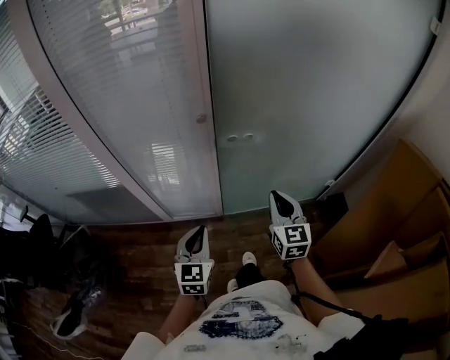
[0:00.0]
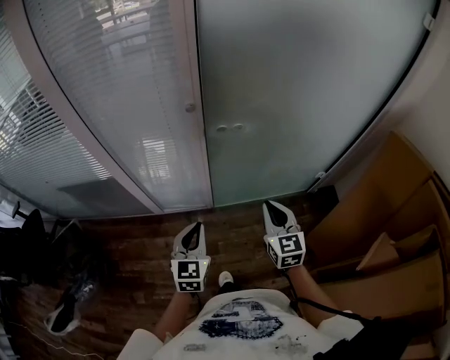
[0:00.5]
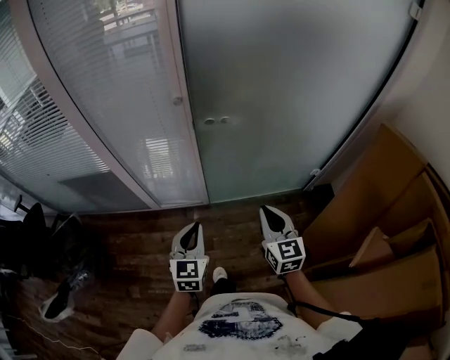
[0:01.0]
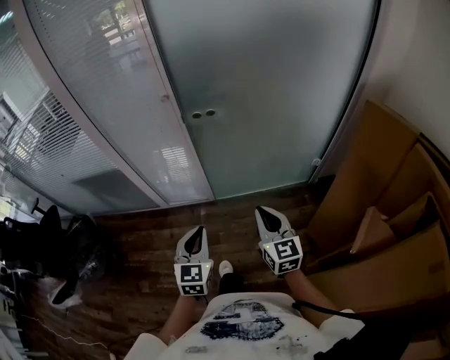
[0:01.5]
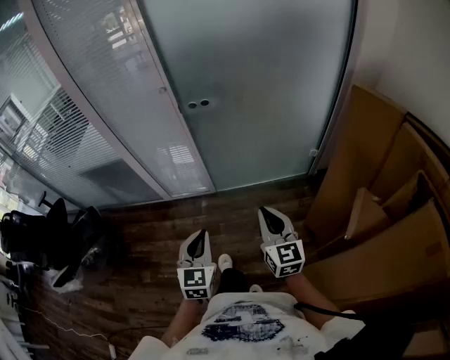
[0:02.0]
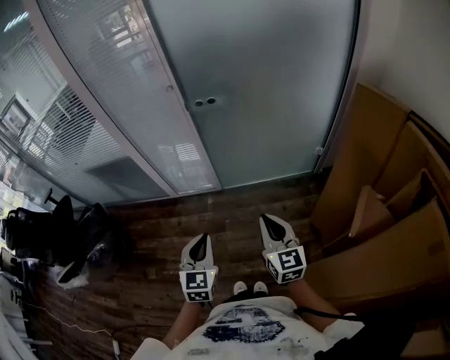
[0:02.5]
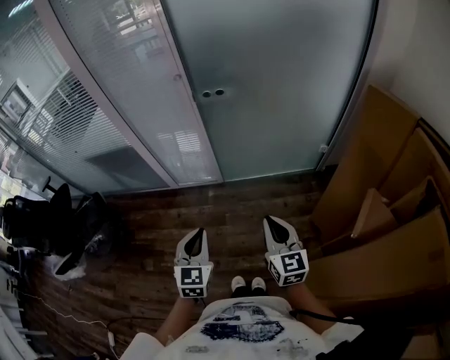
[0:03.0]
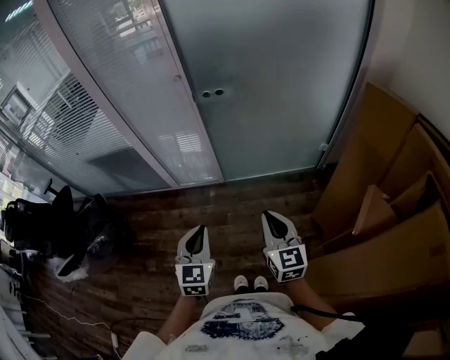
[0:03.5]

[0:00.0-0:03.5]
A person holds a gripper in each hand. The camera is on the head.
0:00.0 to 0:02.0: The right gripper shifts some 30 cm backward. Meanwhile the left gripper is displaced backward and to the right by approximately 30 cm.
0:02.0 to 0:03.5: The grippers stay close to where they were, moving slightly.

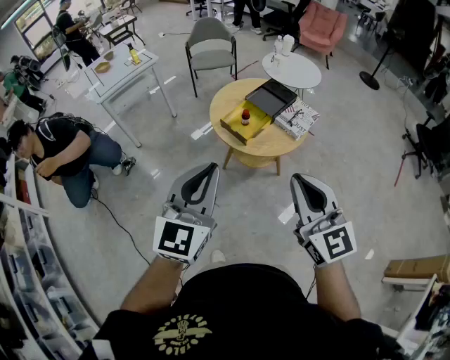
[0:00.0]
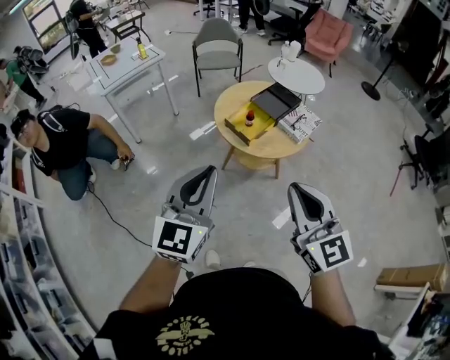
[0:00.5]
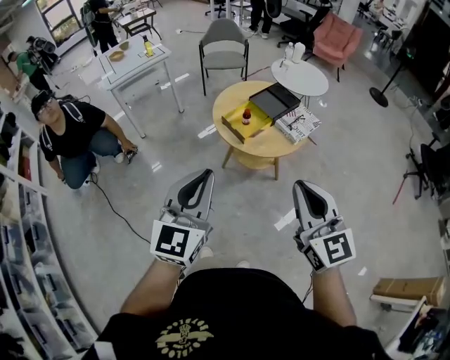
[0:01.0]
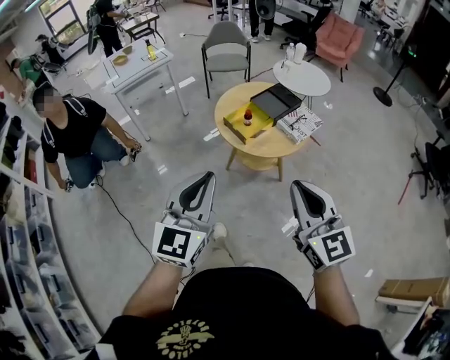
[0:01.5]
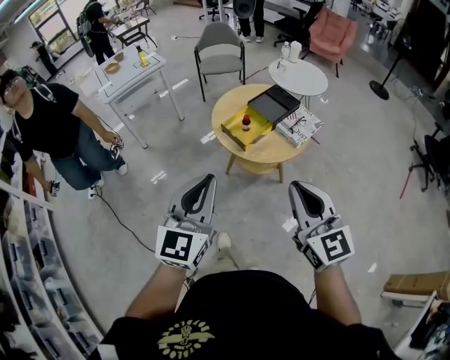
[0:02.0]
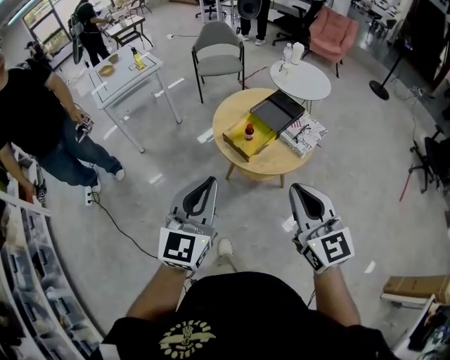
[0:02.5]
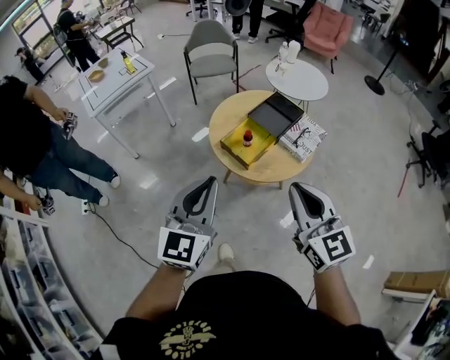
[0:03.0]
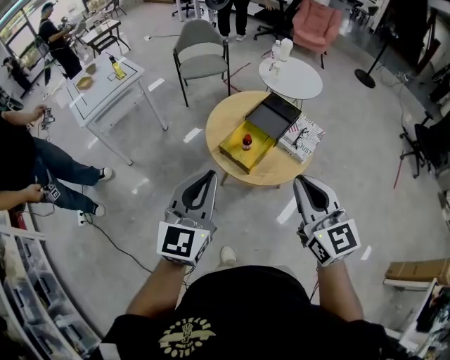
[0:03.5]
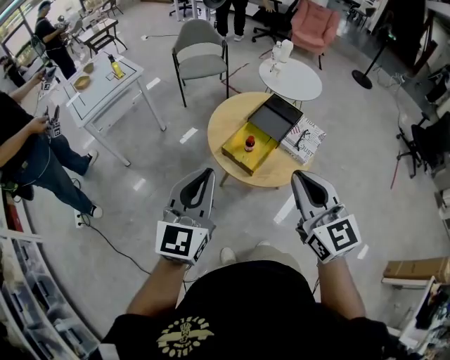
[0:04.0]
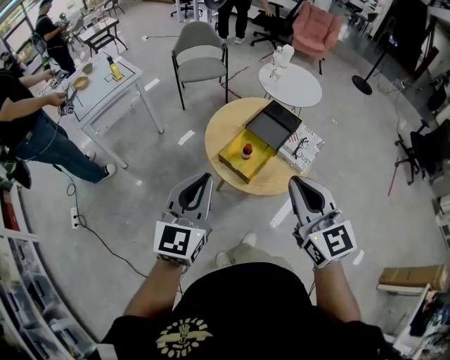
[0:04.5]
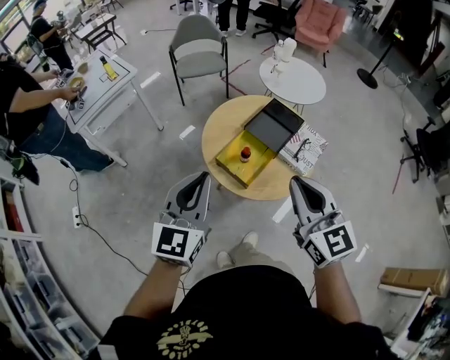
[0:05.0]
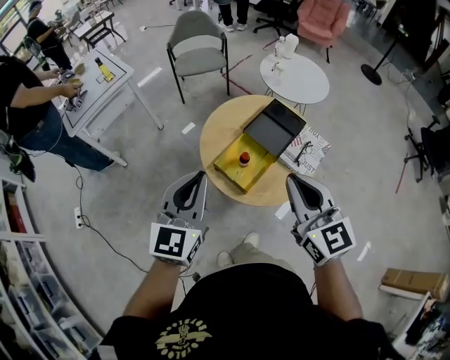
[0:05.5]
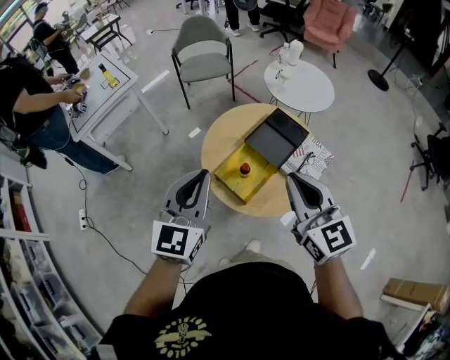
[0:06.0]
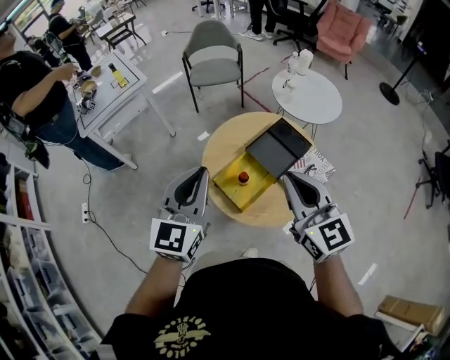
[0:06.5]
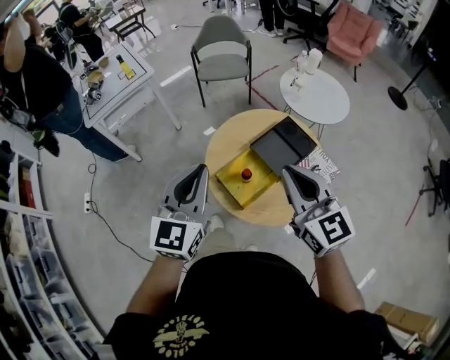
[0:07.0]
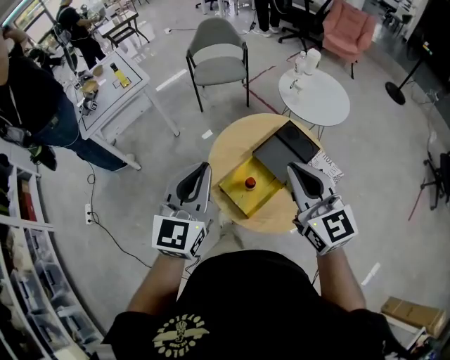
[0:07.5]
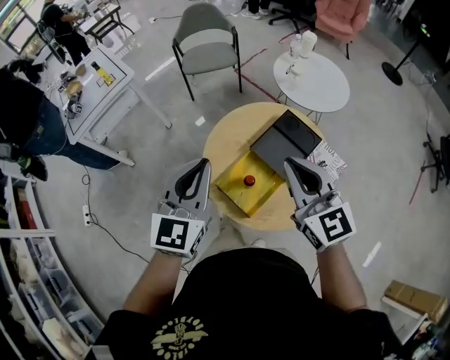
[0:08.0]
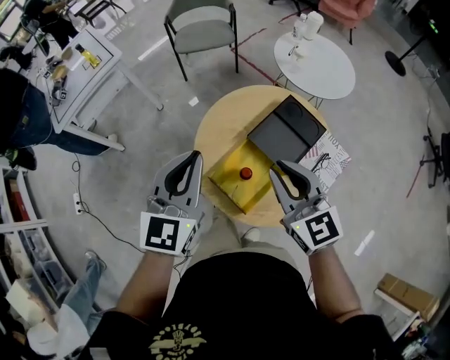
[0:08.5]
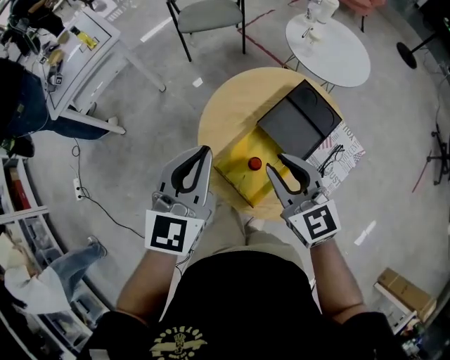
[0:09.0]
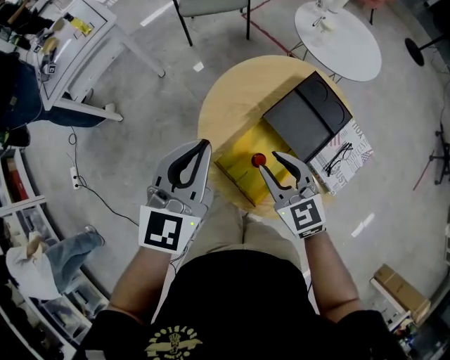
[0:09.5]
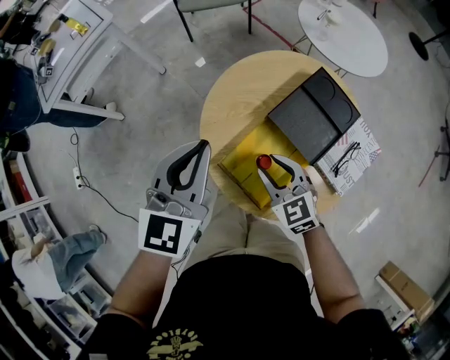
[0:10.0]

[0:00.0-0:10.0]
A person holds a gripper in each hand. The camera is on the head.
0:00.0 to 0:02.0: The right gripper changes place by about 5 cm.
0:02.0 to 0:04.0: The grippers both shift forward and to the left by roughly 25 cm.
0:04.0 to 0:06.0: Both grippers move forward and to the right, about 20 cm.
0:06.0 to 0:08.0: The grippers both shift forward by some 10 cm.
0:08.0 to 0:10.0: The right gripper heads downward, covering about 30 cm, turns by some 30 degrees, and opens; the left gripper travels downward and forward by some 15 cm.

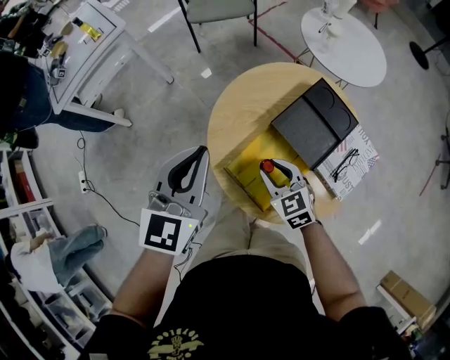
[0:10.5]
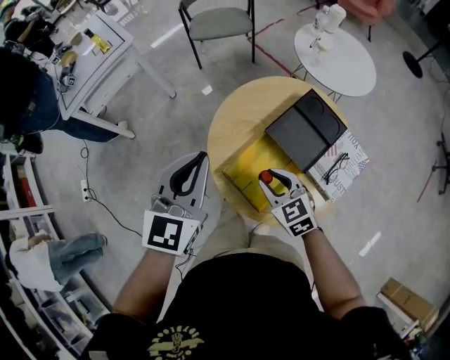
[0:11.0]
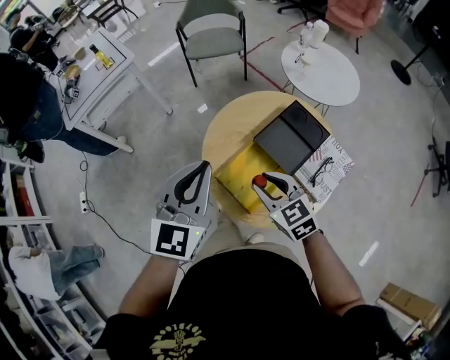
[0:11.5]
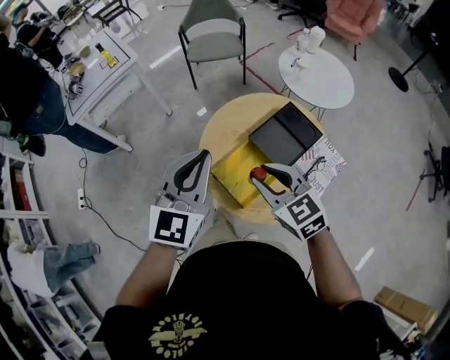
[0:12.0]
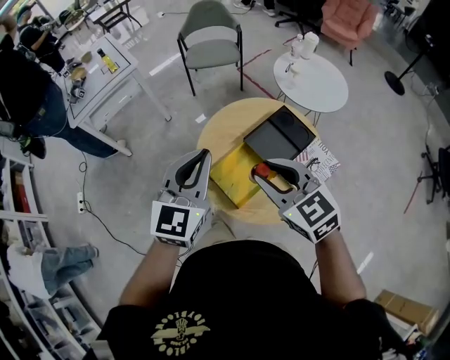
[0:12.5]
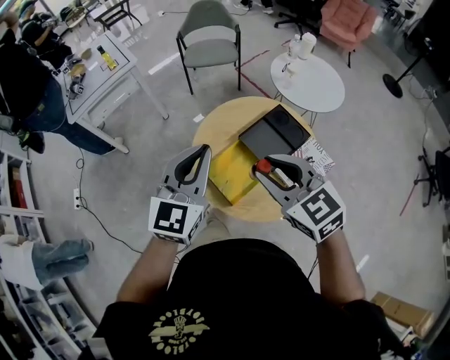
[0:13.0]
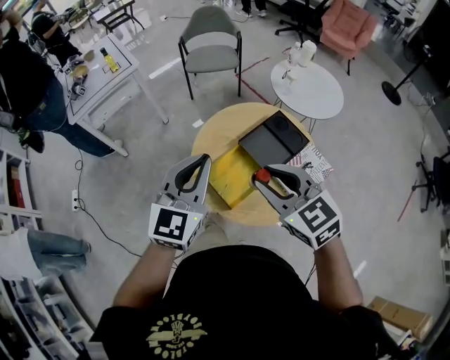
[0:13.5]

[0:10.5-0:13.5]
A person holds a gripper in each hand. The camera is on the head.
0:10.5 to 0:12.0: The right gripper travels upward by about 20 cm; the left gripper goes some 15 cm upward and backward.
0:12.0 to 0:13.5: The right gripper shifts about 10 cm upward.

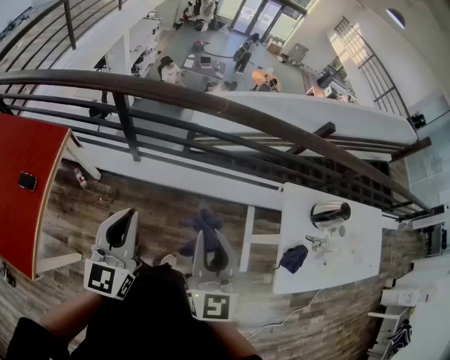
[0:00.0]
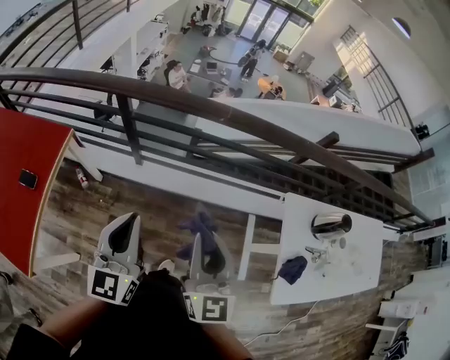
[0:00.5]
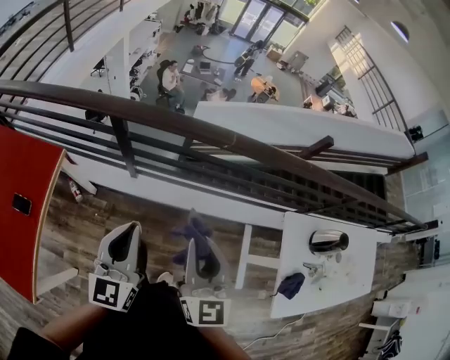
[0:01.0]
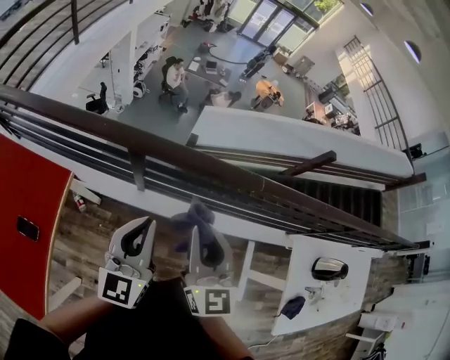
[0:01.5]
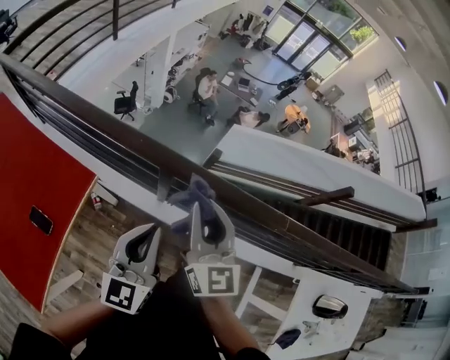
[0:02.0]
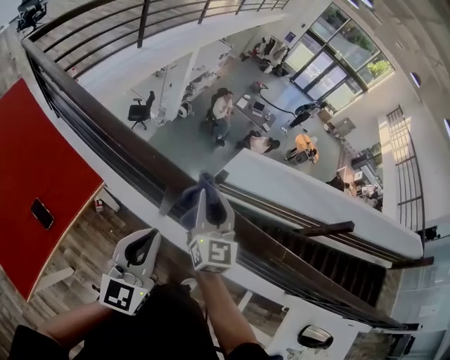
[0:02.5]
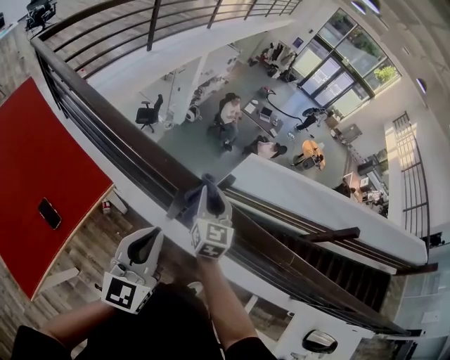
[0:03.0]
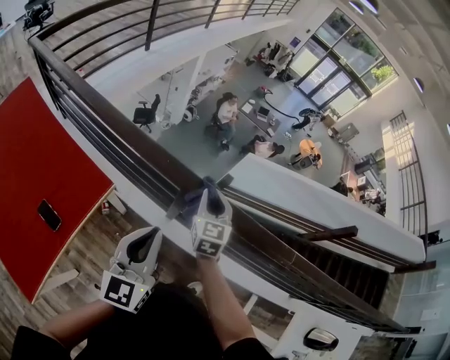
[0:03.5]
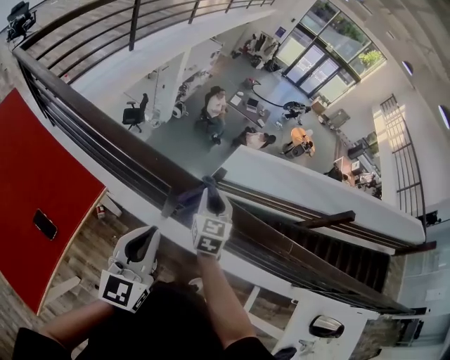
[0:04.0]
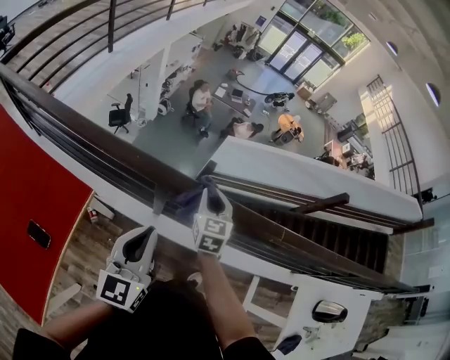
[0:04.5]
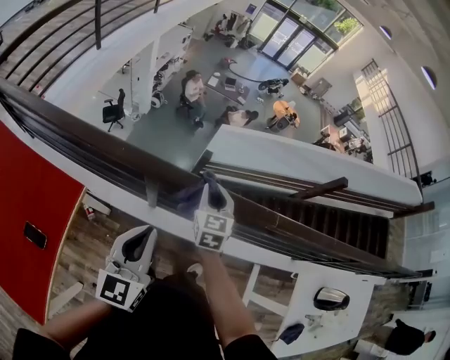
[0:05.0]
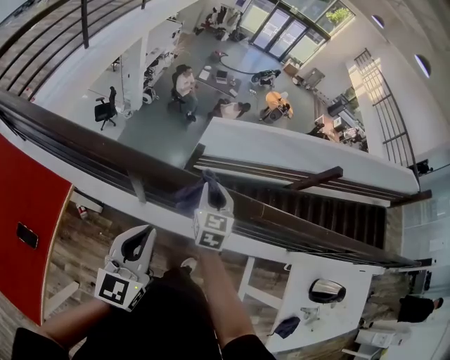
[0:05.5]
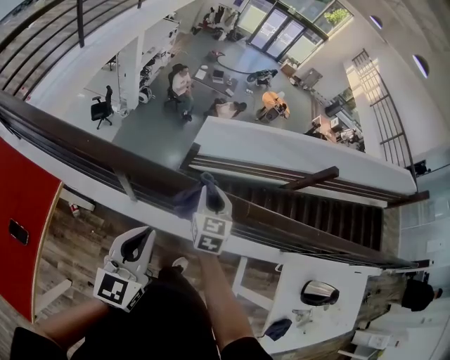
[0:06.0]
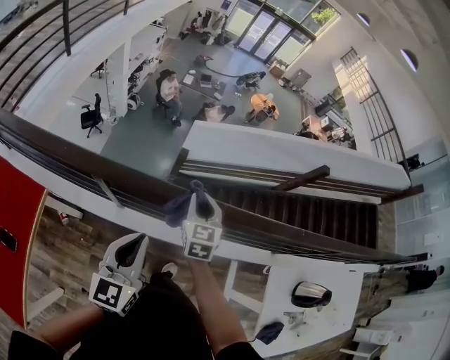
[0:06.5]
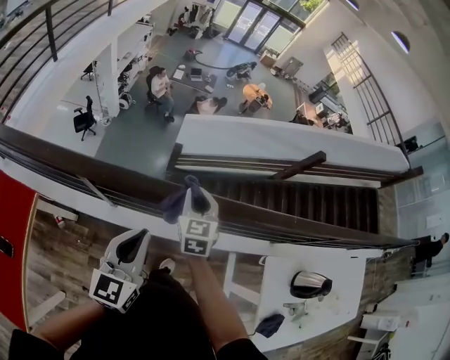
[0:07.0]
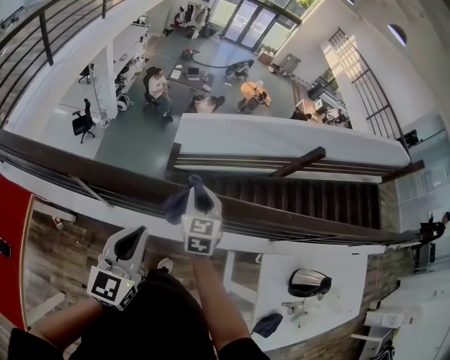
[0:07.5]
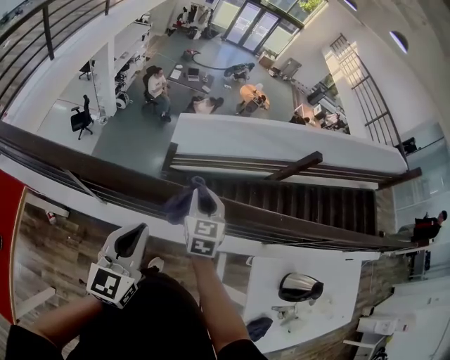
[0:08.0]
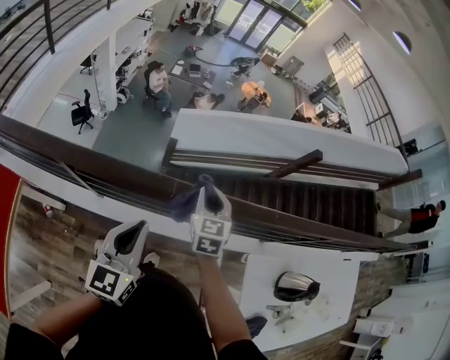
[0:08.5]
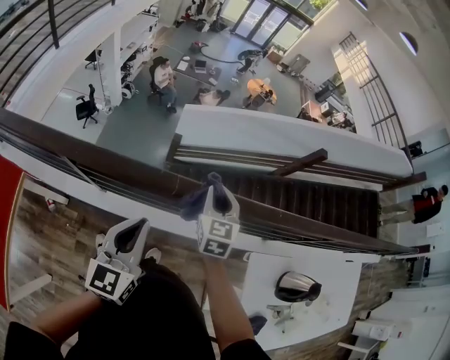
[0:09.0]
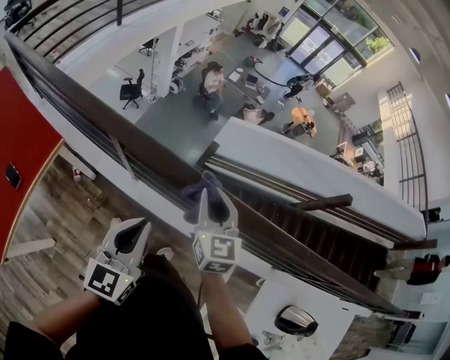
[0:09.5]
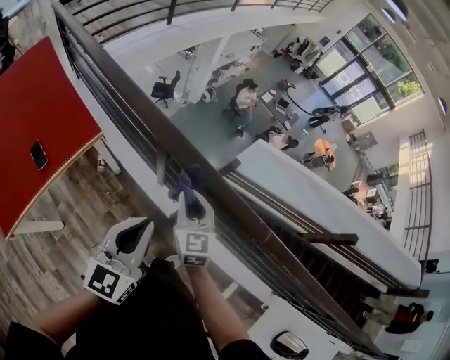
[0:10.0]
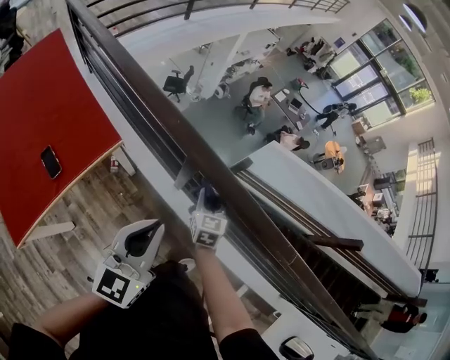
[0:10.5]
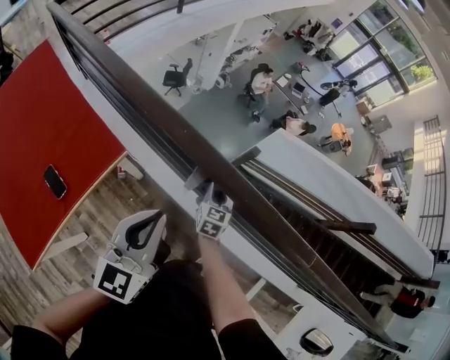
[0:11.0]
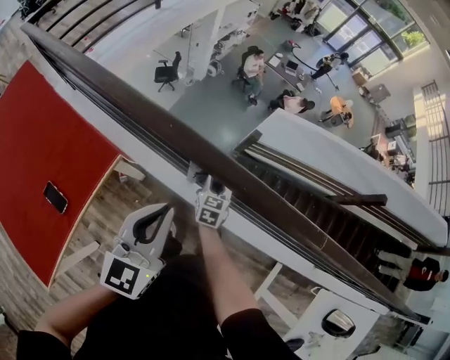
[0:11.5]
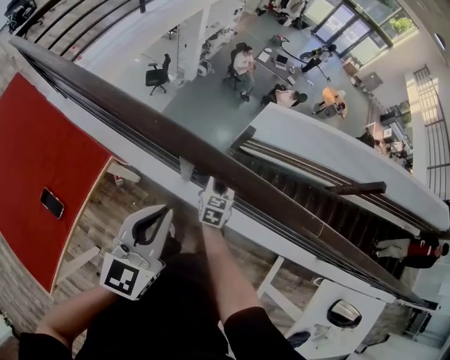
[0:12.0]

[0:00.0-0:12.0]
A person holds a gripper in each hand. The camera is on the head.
0:00.0 to 0:02.0: The right gripper heads forward and to the left, covering approximately 35 cm, and turns by about 20 degrees; the left gripper moves forward and to the left, about 20 cm.
0:02.0 to 0:04.0: The left gripper moves some 5 cm; the right gripper moves downward and forward, about 20 cm, and changes its angle by about 30 degrees.
0:04.0 to 0:06.0: The two grippers go about 15 cm to the right.
0:06.0 to 0:08.0: Both grippers travel together to the right, some 15 cm.
0:08.0 to 0:10.0: The left gripper changes place by some 20 cm, and rotates about 30 degrees. The right gripper ends up approximately 30 cm from where it was, and swivels some 40 degrees.
0:10.0 to 0:12.0: The left gripper heads to the left and forward, covering some 10 cm; the right gripper heads downward and forward, covering about 20 cm, and changes its angle by approximately 30 degrees.
